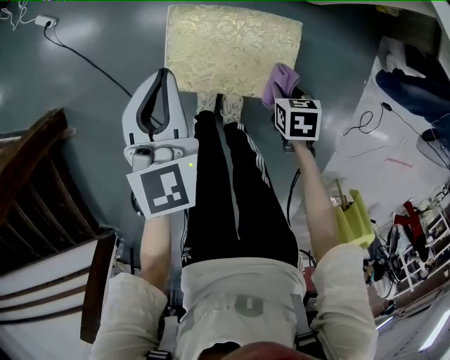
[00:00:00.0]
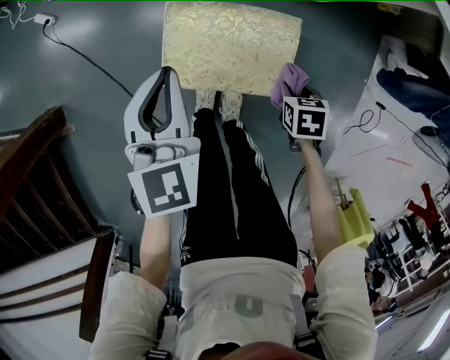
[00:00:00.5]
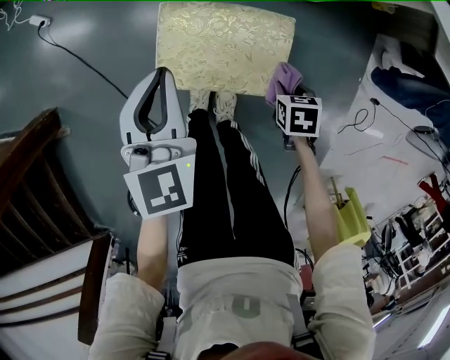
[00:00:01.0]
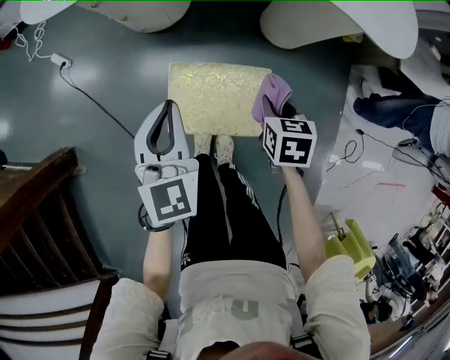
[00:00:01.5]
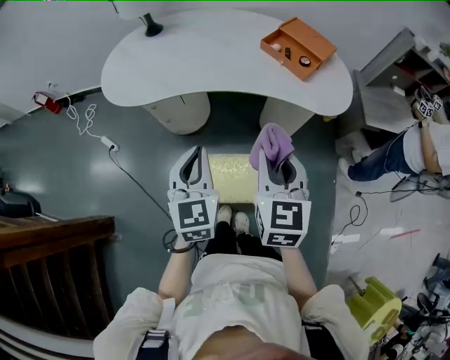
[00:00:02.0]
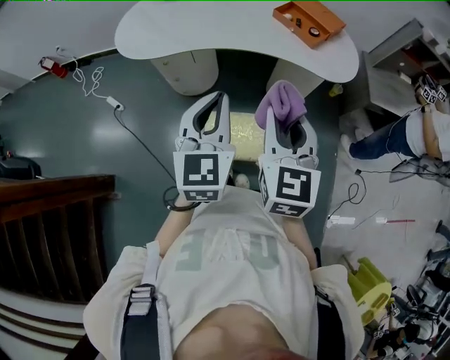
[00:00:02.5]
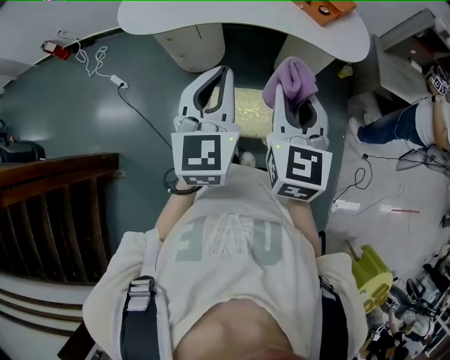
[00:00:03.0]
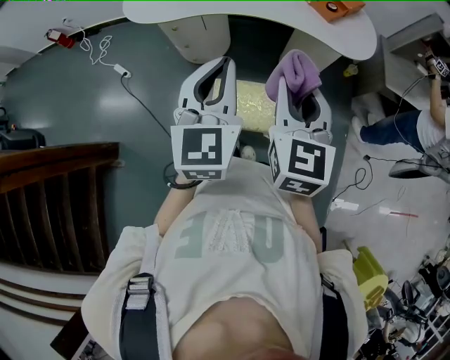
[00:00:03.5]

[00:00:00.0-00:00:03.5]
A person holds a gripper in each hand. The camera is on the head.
00:00:00.0 to 00:00:02.0: The right gripper goes about 60 cm upward, and tilts its fingers roughly 50 degrees upward. Meanwhile the left gripper shifts about 30 cm upward.
00:00:02.0 to 00:00:03.5: The right gripper heads backward, covering approximately 10 cm. The left gripper goes roughly 10 cm upward and backward.

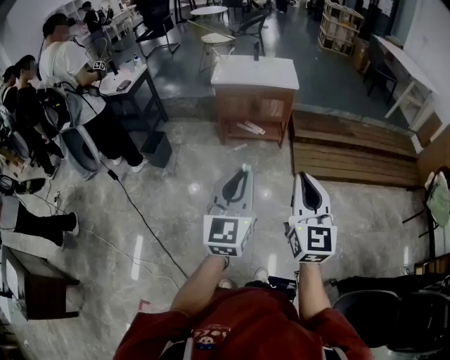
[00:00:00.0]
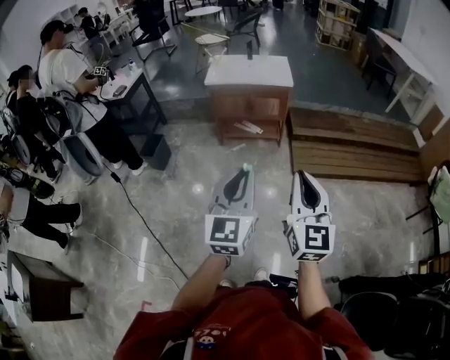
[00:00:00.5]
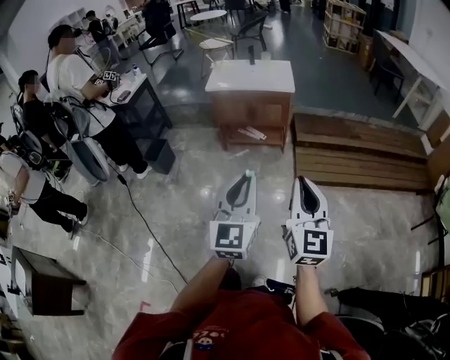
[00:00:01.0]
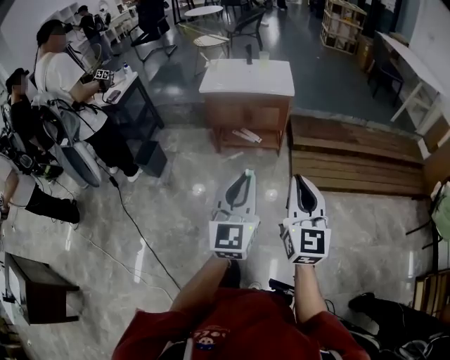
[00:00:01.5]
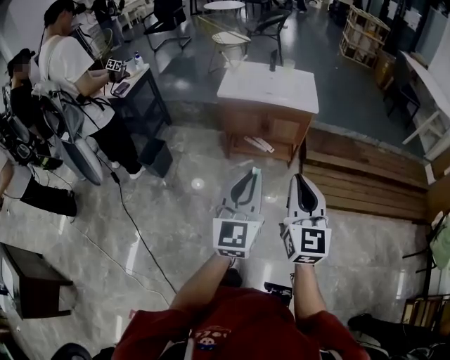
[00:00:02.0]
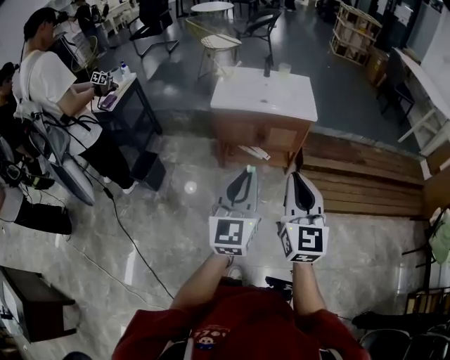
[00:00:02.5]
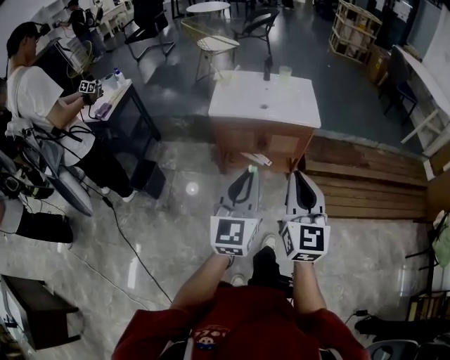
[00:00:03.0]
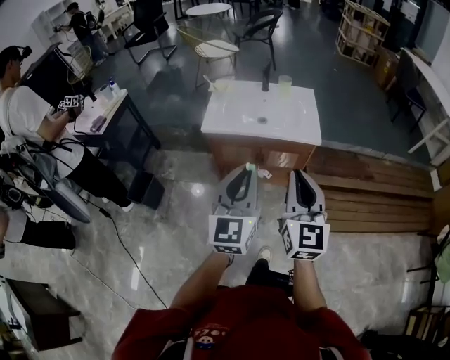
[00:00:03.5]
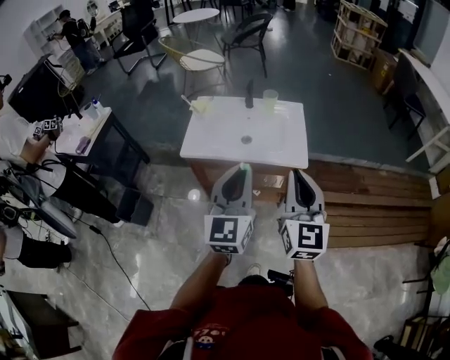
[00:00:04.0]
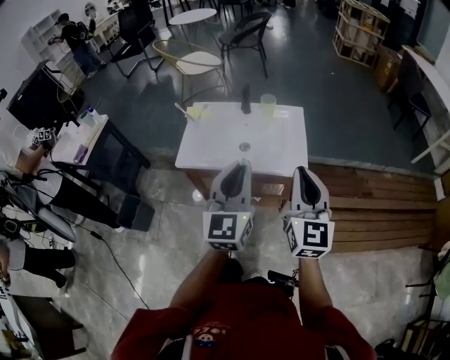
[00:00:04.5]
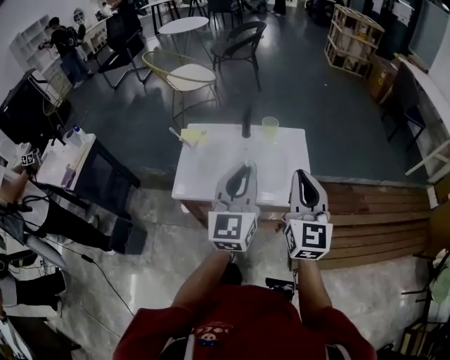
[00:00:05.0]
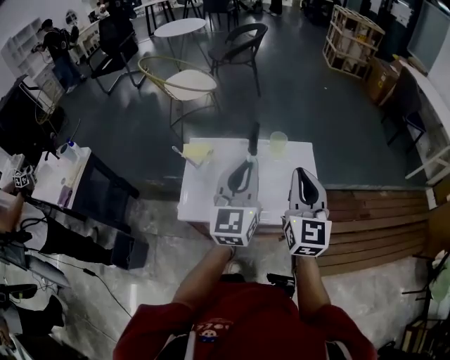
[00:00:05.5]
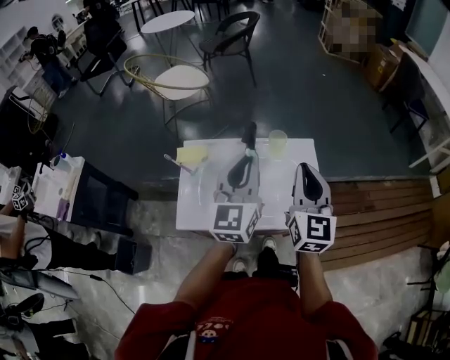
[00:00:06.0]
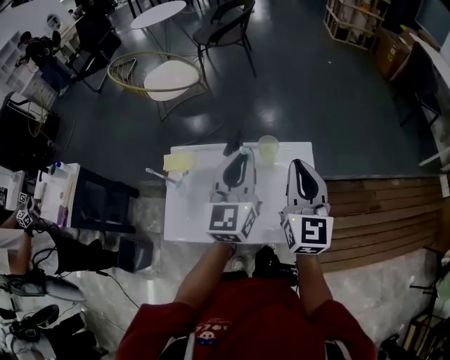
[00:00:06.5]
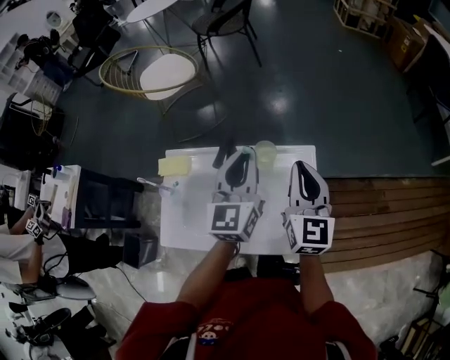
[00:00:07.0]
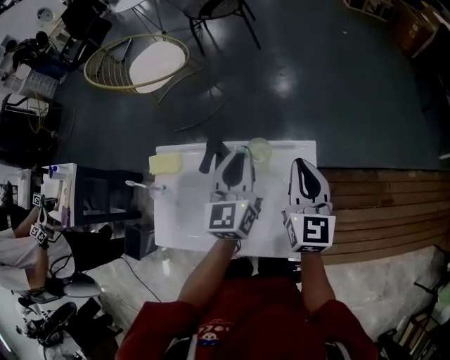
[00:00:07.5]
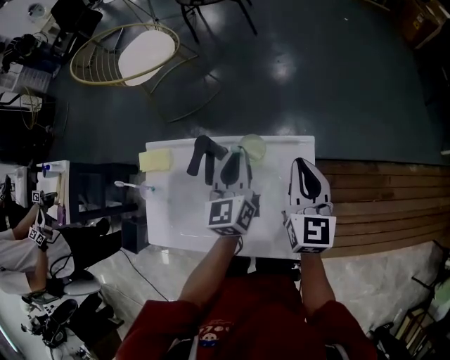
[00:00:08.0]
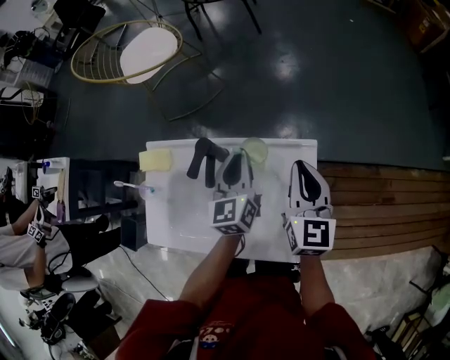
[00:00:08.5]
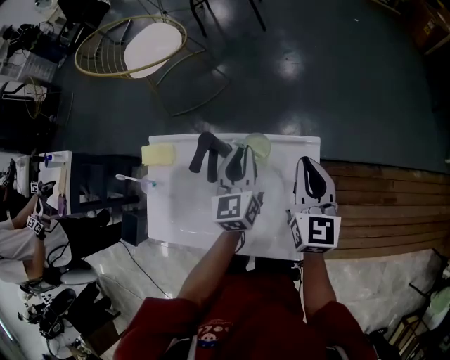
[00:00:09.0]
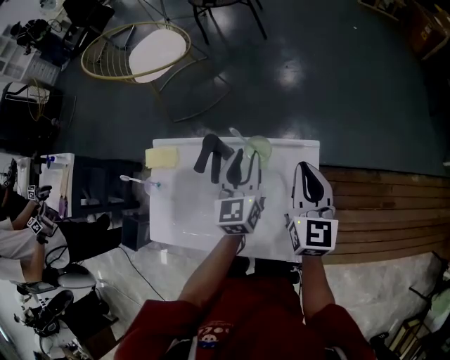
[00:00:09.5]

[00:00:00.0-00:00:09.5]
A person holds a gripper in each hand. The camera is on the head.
00:00:00.0 to 00:00:02.0: Both grippers travel together forward, some 25 cm.
00:00:02.0 to 00:00:04.0: The pair of grippers is taken forward, approximately 40 cm.
00:00:04.0 to 00:00:05.5: Both grippers move forward, about 30 cm.
00:00:05.5 to 00:00:07.5: Both grippers move forward, downward and to the right, about 30 cm.
00:00:07.5 to 00:00:09.5: The left gripper moves downward, about 10 cm, and opens.

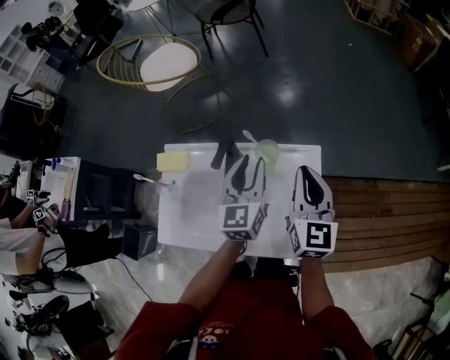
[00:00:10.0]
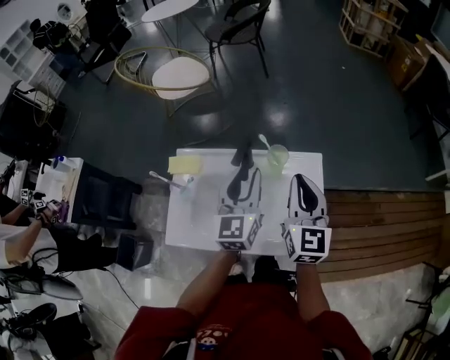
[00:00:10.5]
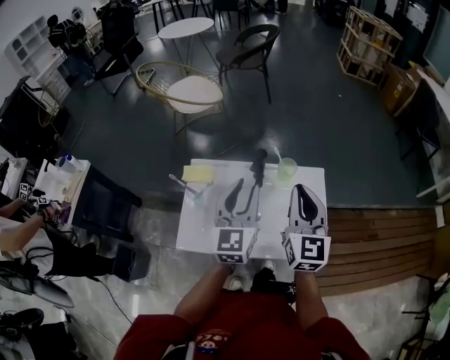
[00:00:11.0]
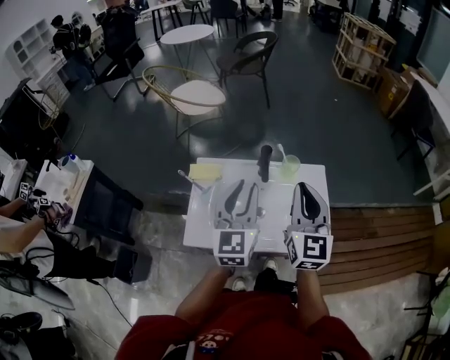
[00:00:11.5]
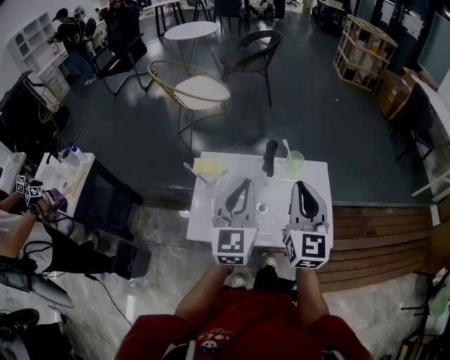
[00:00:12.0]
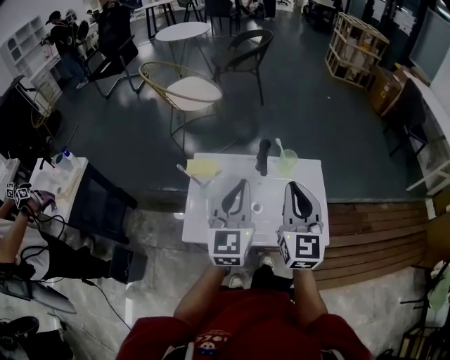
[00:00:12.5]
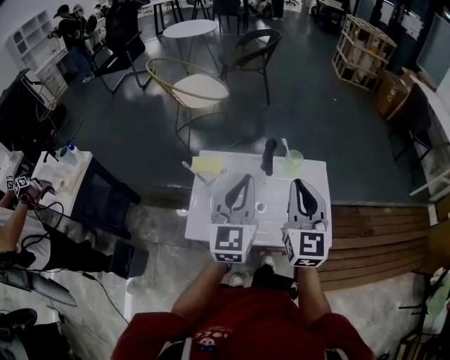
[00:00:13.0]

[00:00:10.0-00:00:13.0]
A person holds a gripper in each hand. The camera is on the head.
00:00:10.0 to 00:00:11.5: The grippers both shift backward, to the left and upward by some 25 cm.
00:00:11.5 to 00:00:13.0: The left gripper closes up.

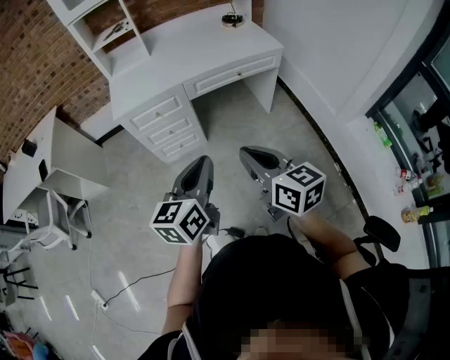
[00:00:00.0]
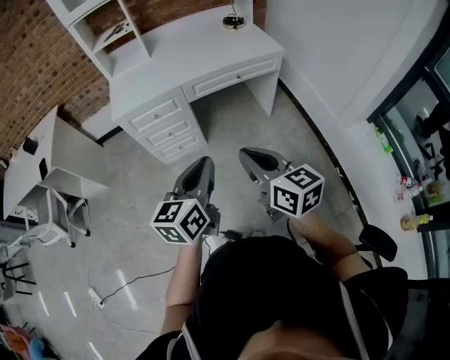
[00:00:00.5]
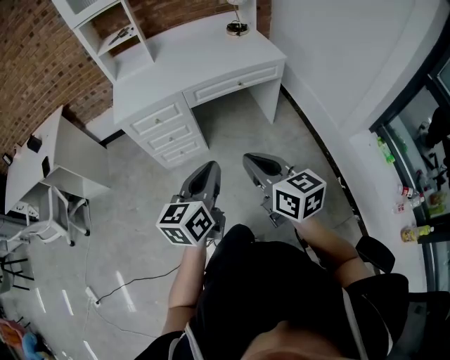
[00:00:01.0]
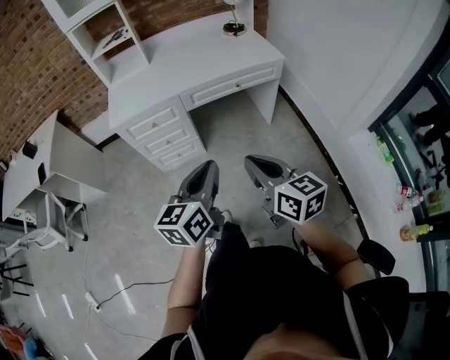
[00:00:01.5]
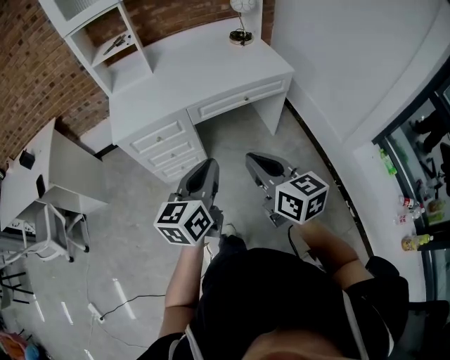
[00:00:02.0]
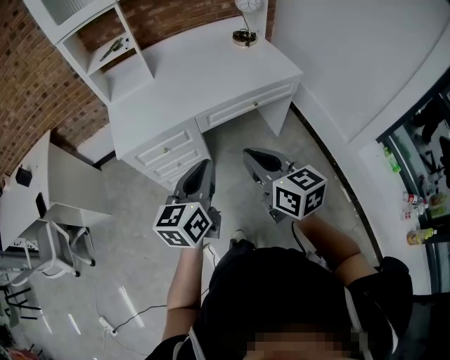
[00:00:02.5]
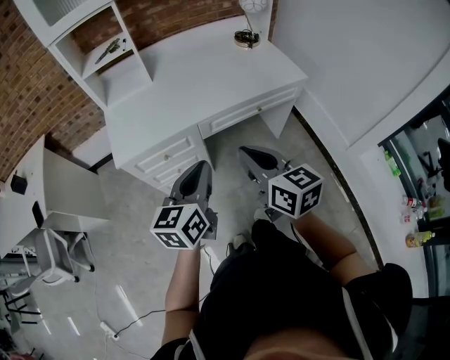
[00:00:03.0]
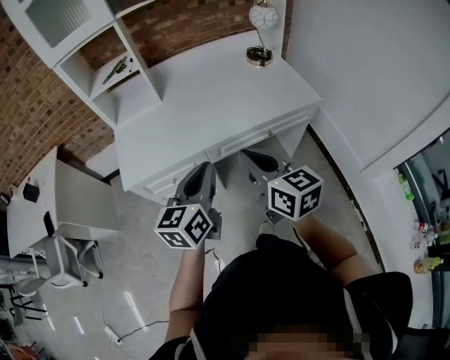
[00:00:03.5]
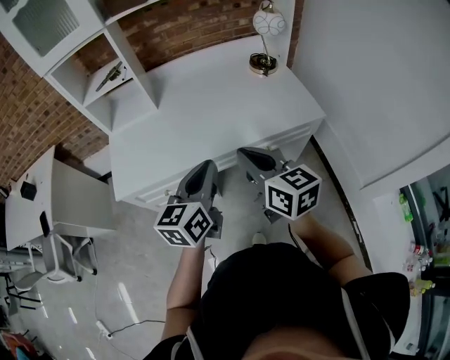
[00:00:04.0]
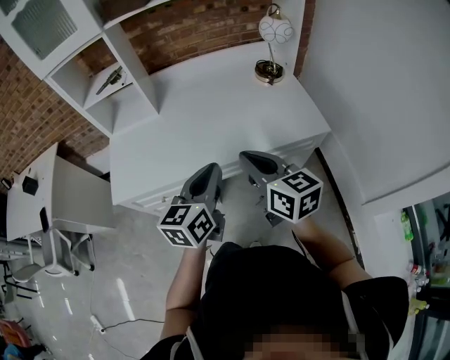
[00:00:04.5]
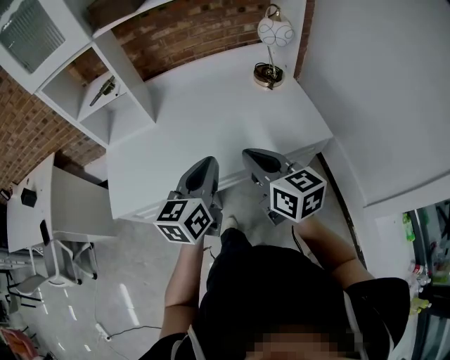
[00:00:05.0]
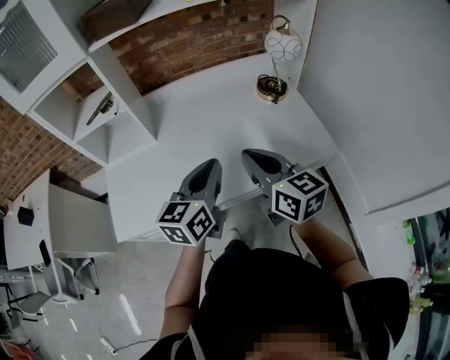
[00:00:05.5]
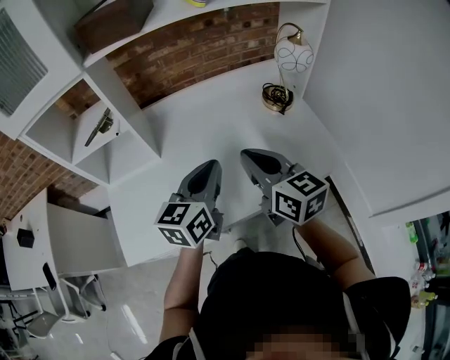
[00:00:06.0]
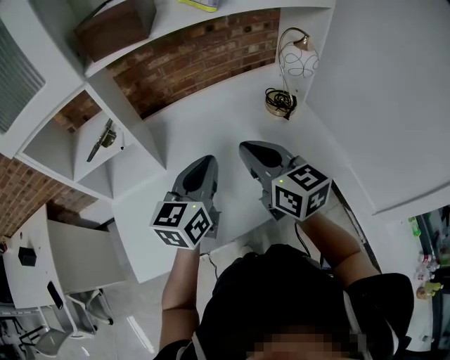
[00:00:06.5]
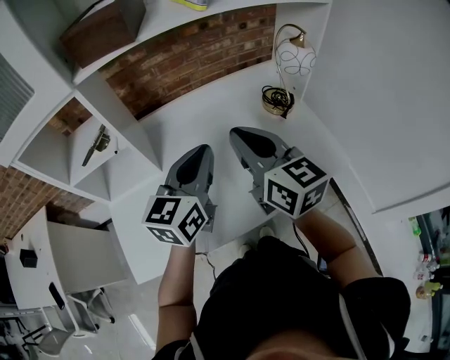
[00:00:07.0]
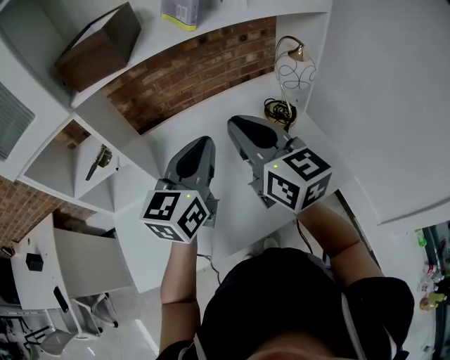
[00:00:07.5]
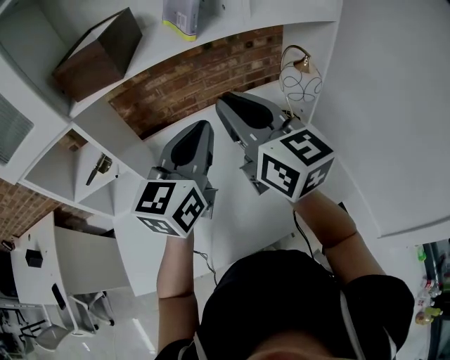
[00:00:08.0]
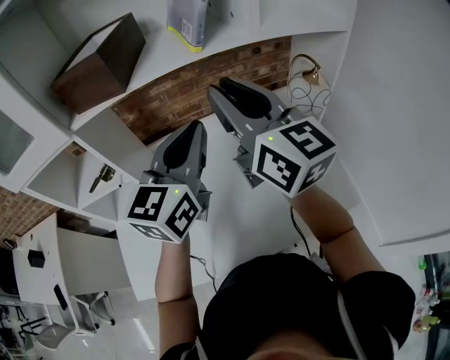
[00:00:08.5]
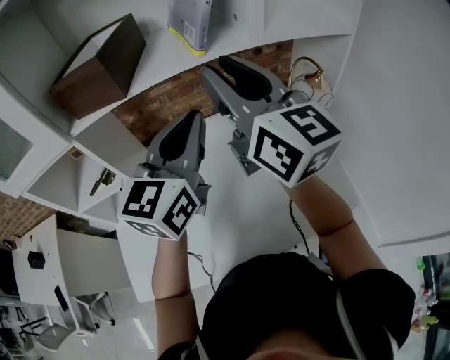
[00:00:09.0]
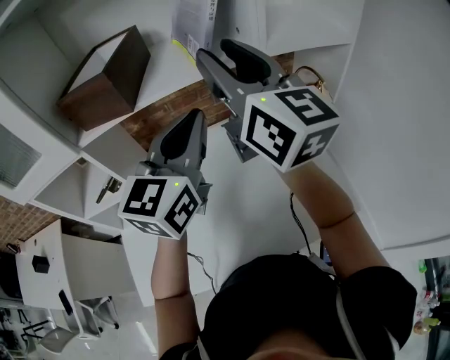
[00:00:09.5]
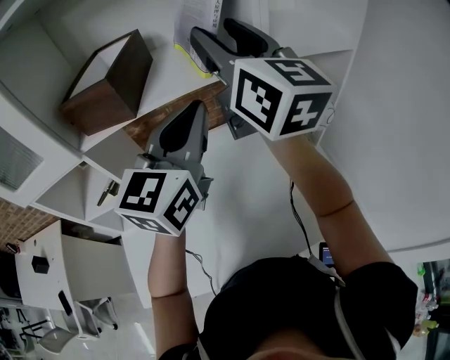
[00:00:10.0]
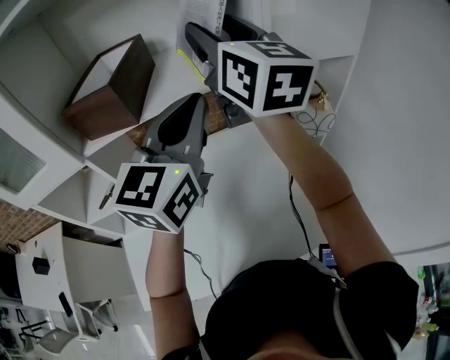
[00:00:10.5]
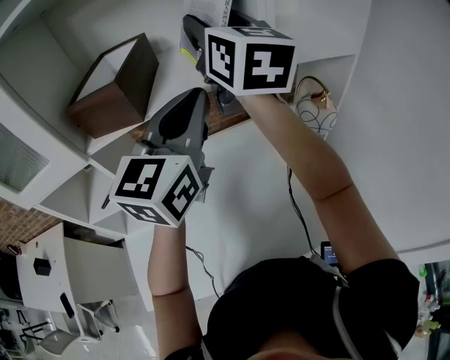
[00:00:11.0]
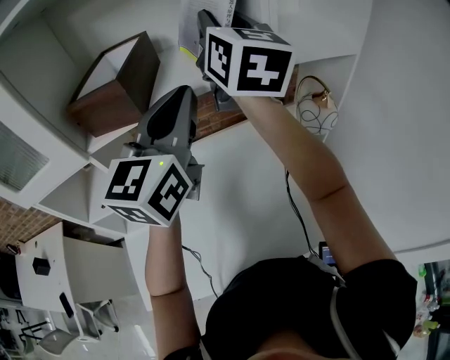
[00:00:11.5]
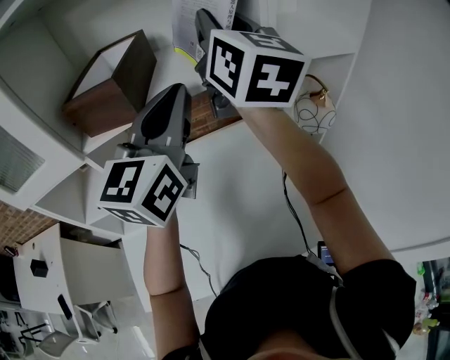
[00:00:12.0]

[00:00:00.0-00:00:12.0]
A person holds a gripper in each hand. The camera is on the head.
00:00:00.0 to 00:00:02.0: Both grippers travel together forward, about 15 cm.
00:00:02.0 to 00:00:04.0: Both grippers move forward, roughly 35 cm.
00:00:04.0 to 00:00:06.0: Both grippers move forward, some 25 cm.
00:00:06.0 to 00:00:08.0: The grippers both shift upward and forward by about 20 cm.
00:00:08.0 to 00:00:10.0: The right gripper shifts about 20 cm upward and forward, and opens its fingers; the left gripper travels upward and forward by about 15 cm.
00:00:10.0 to 00:00:12.0: The left gripper changes place by approximately 5 cm; the right gripper closes up.
